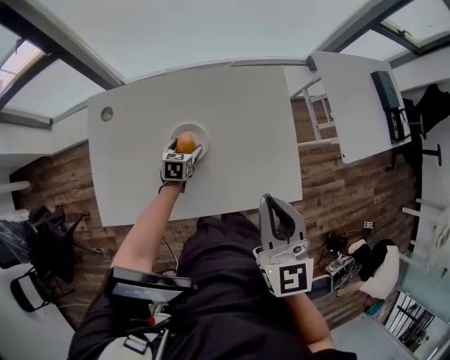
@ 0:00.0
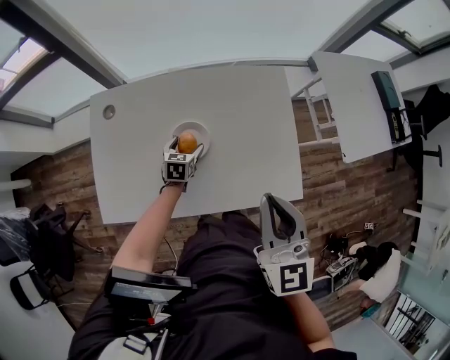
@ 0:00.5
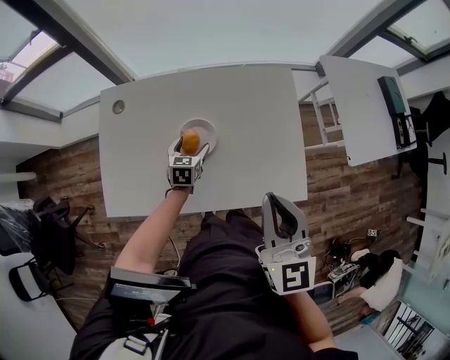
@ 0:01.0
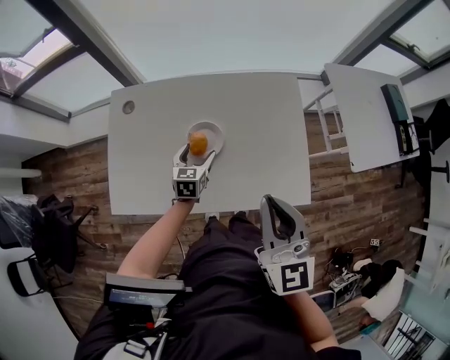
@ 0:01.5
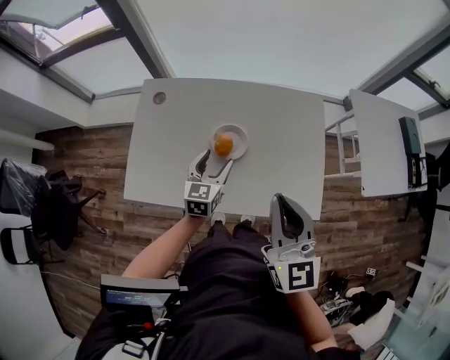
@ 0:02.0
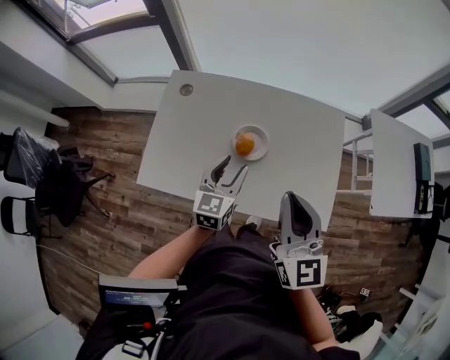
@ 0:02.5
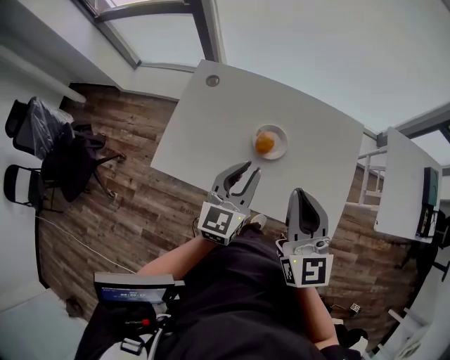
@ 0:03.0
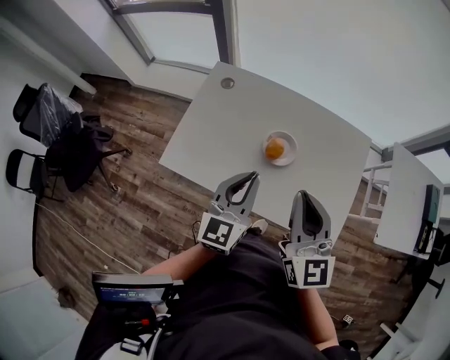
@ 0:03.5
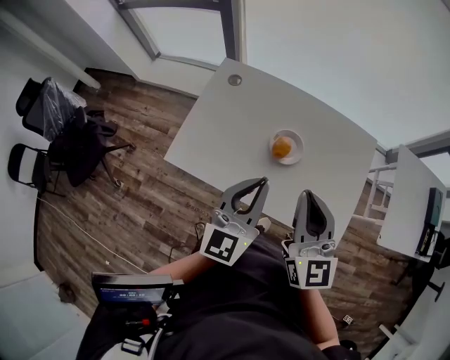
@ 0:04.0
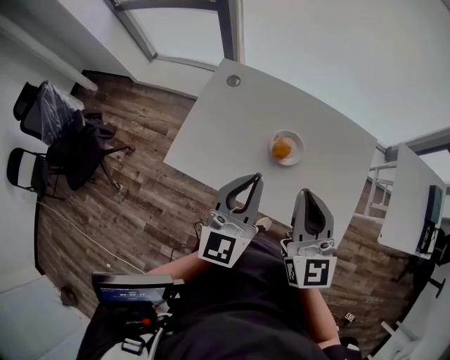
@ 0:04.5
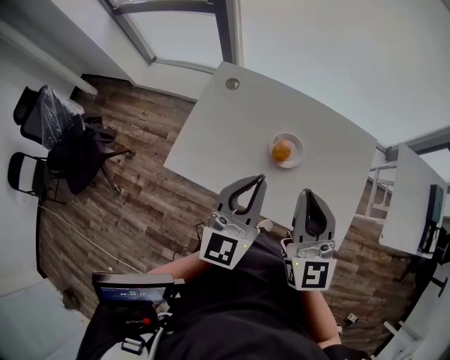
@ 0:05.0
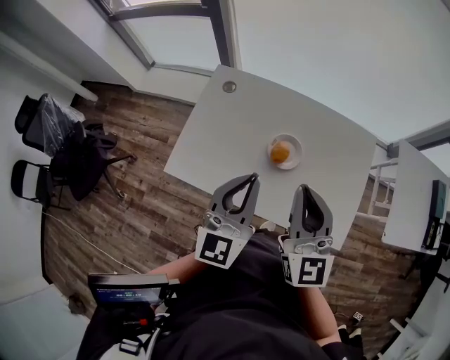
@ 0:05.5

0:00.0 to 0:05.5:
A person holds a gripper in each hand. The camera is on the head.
0:00.0 to 0:02.0: The right gripper changes place by approximately 5 cm. Meanwhile the left gripper travels upward and backward by some 20 cm, and changes its angle by about 30 degrees.
0:02.0 to 0:03.5: The left gripper heads upward, backward and to the left, covering roughly 20 cm, turns by about 20 degrees, and closes; the right gripper moves to the left, some 10 cm.
0:03.5 to 0:05.5: The left gripper ends up roughly 5 cm from where it was.

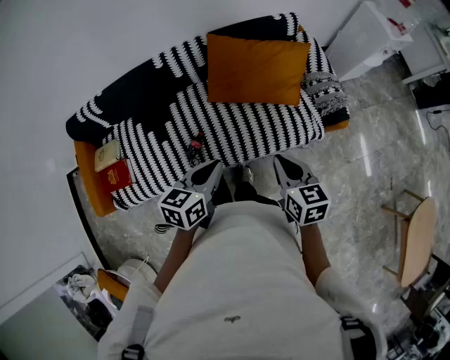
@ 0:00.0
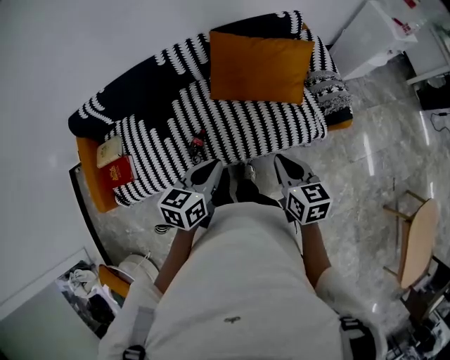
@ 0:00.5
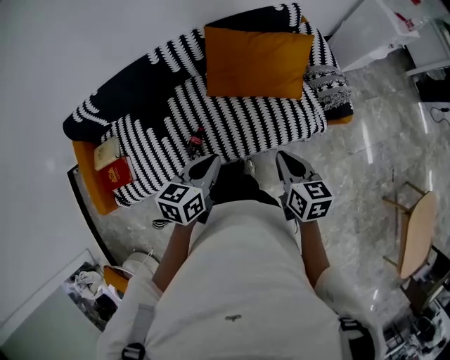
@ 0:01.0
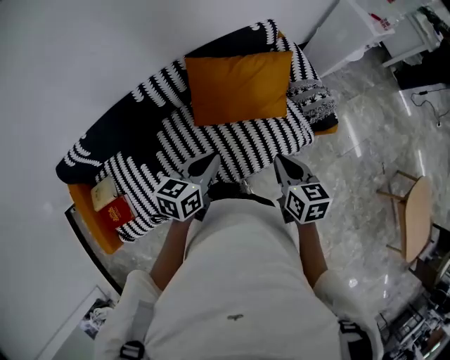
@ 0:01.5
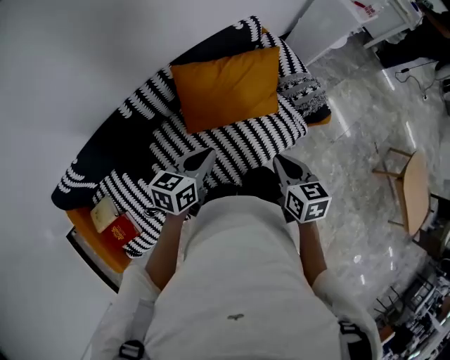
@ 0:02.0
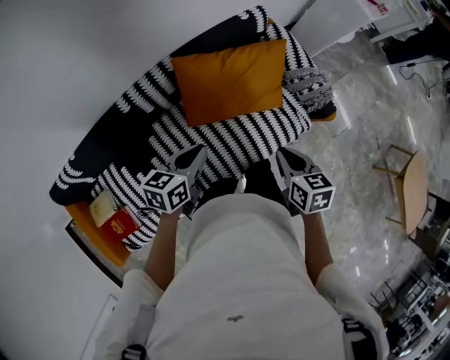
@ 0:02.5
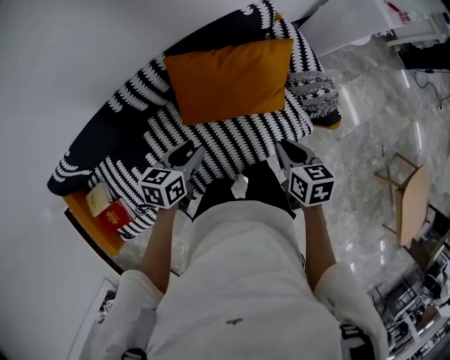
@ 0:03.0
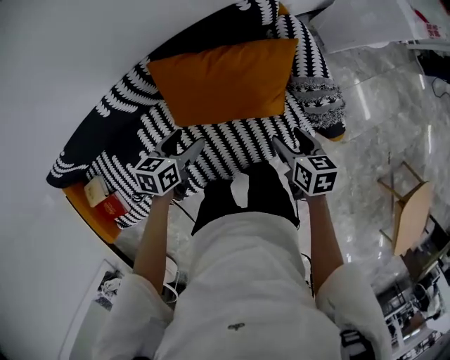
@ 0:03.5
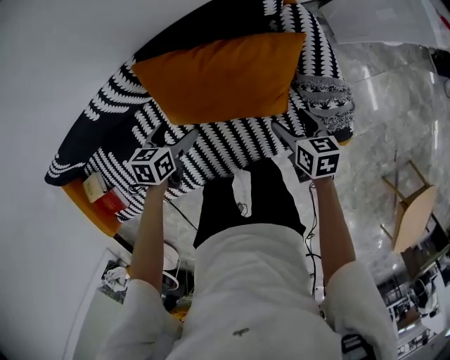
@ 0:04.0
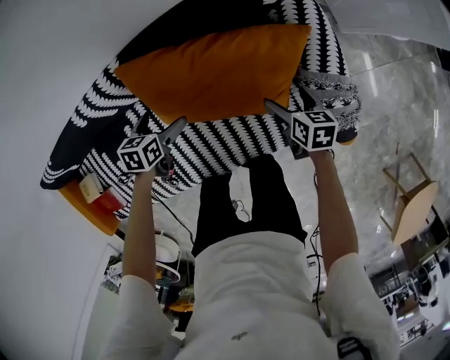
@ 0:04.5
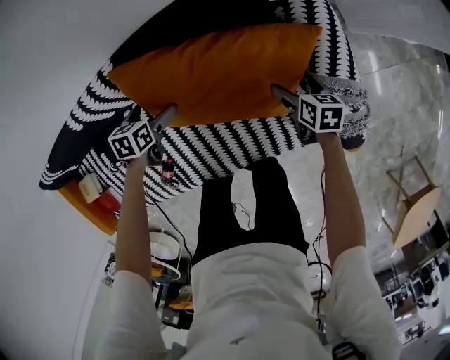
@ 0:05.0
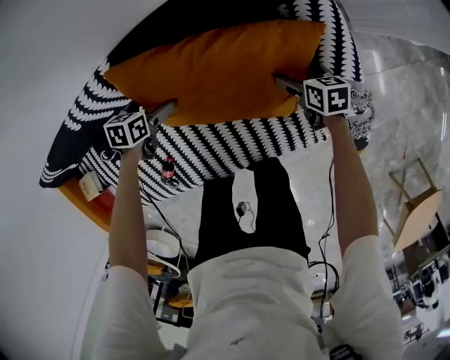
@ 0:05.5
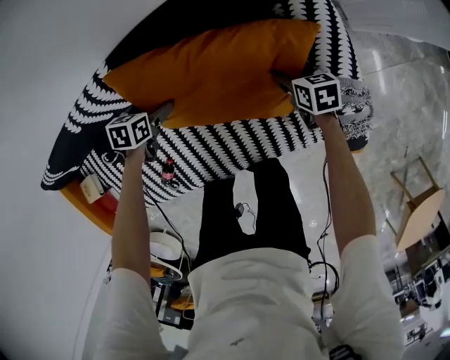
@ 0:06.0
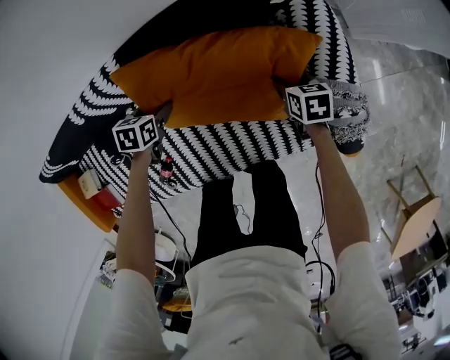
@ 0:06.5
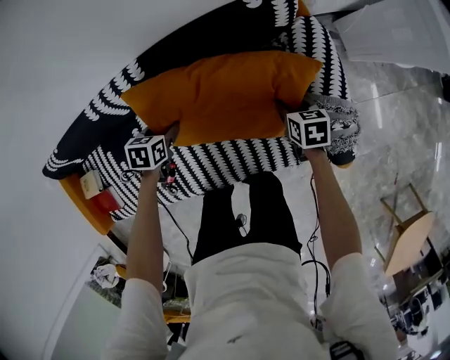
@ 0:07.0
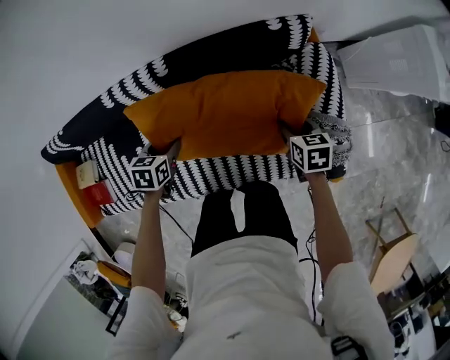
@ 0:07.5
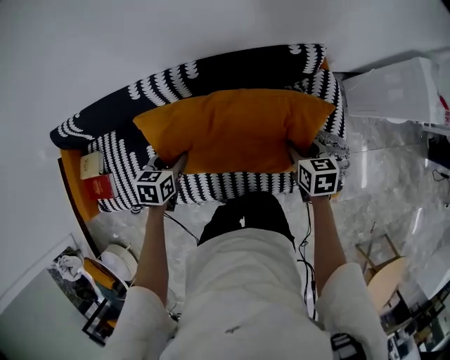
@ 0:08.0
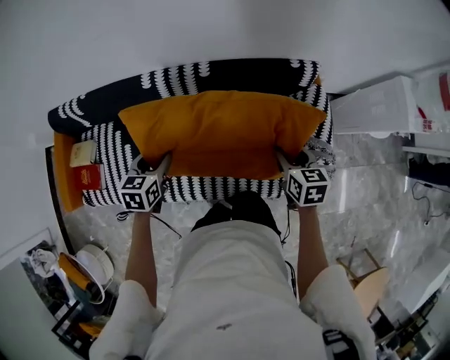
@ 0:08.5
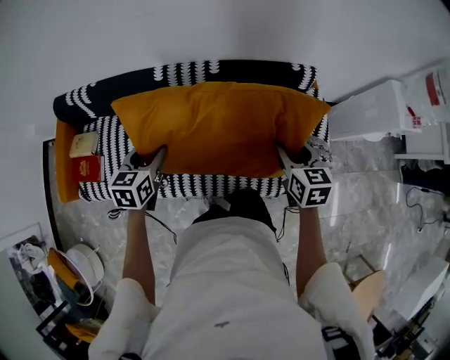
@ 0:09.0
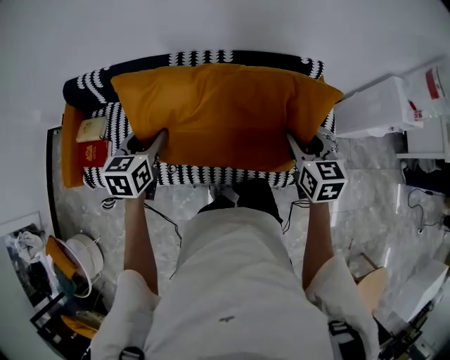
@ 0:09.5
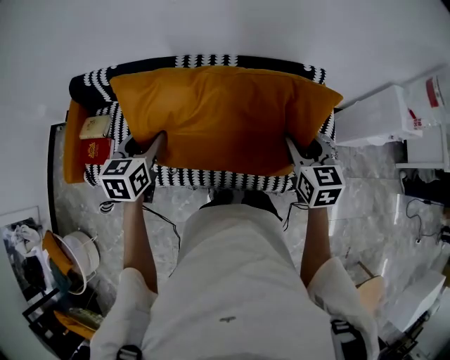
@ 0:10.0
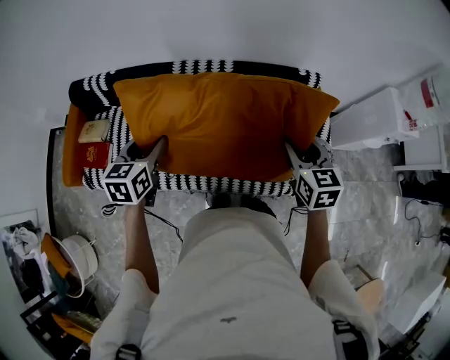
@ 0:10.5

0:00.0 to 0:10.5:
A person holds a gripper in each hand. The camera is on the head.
0:00.0 to 0:02.0: The right gripper shifts roughly 15 cm forward, and turns by some 20 degrees. Meanwhile the left gripper moves forward, roughly 20 cm, and changes its angle by about 20 degrees.
0:02.0 to 0:04.0: The left gripper is displaced downward and forward by some 30 cm, rotates some 30 degrees, and opens up. Meanwhile the right gripper goes roughly 35 cm forward and downward, rotates about 20 degrees, and opens up.
0:04.0 to 0:06.5: Both grippers travel together downward and forward, about 15 cm.
0:06.5 to 0:08.5: The right gripper shifts about 30 cm upward, and turns by some 20 degrees. The left gripper heads upward, backward and to the left, covering some 35 cm, and rotates roughly 30 degrees.
0:08.5 to 0:10.5: The two grippers go approximately 20 cm upward, backward and to the left.

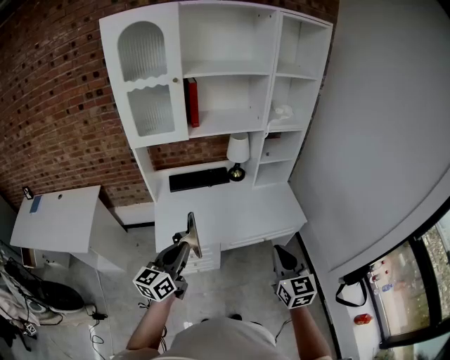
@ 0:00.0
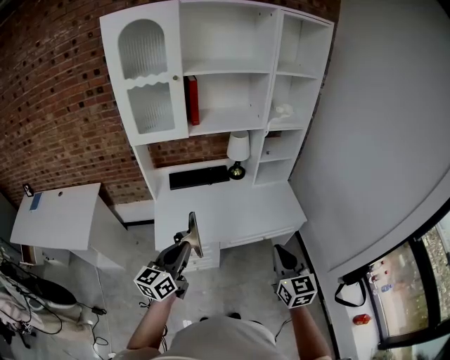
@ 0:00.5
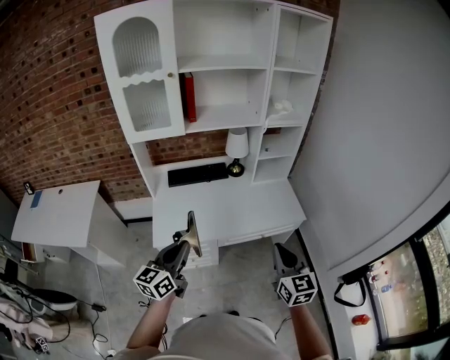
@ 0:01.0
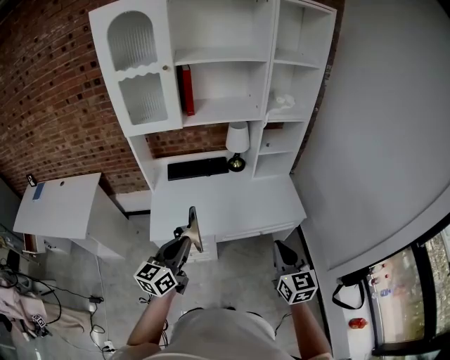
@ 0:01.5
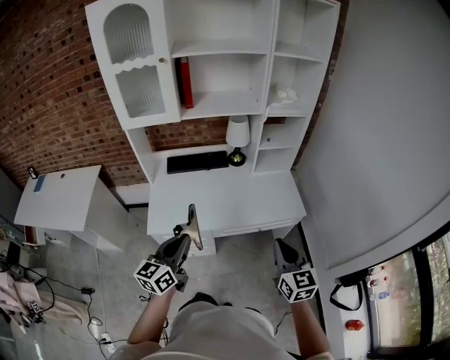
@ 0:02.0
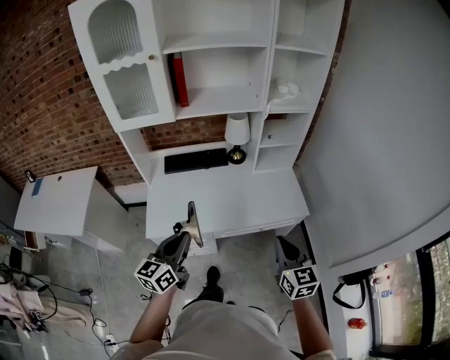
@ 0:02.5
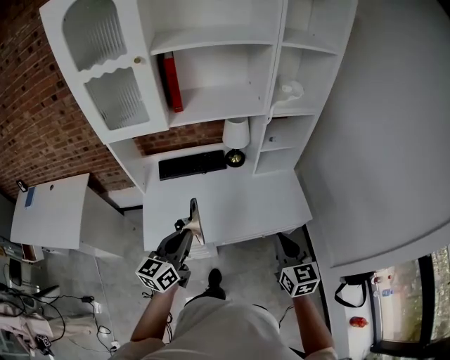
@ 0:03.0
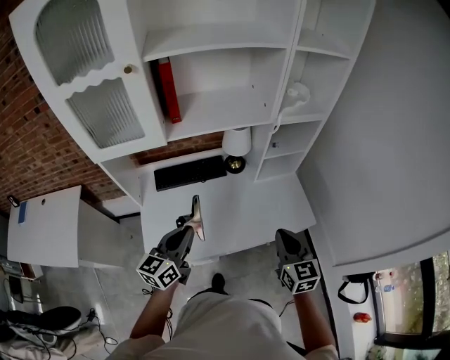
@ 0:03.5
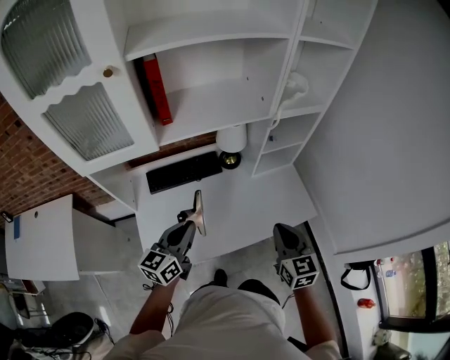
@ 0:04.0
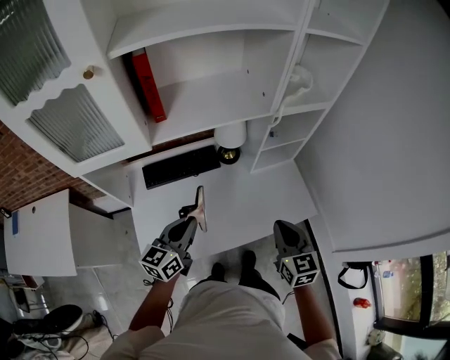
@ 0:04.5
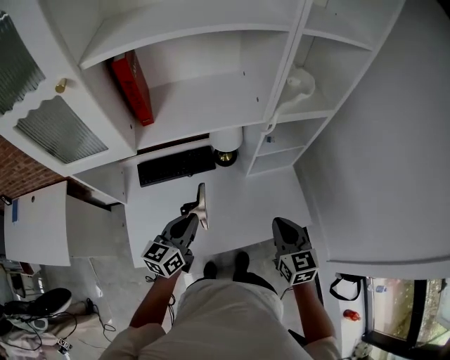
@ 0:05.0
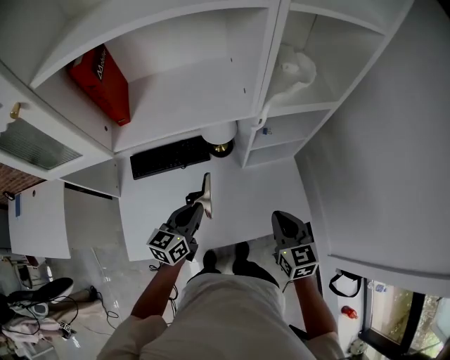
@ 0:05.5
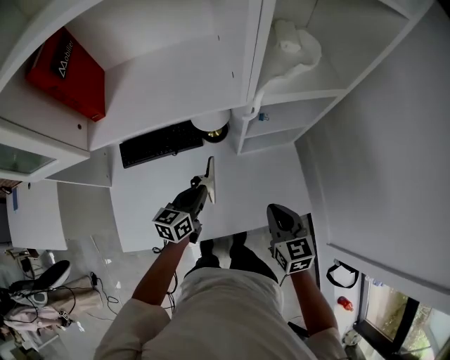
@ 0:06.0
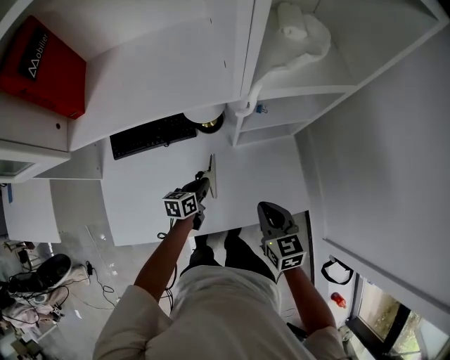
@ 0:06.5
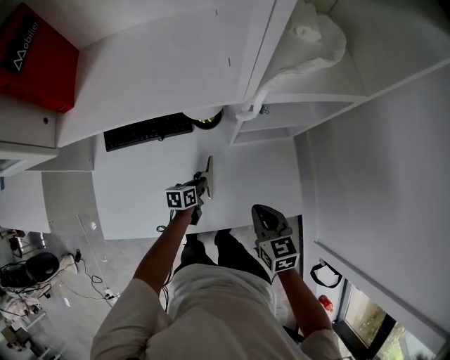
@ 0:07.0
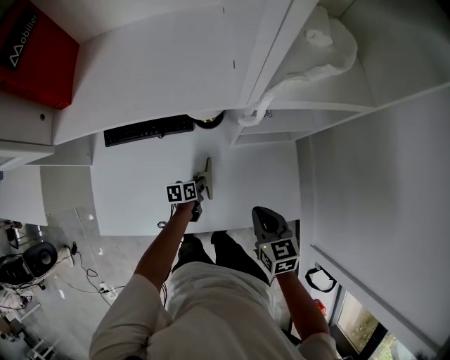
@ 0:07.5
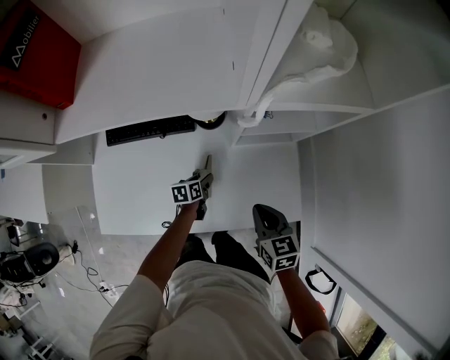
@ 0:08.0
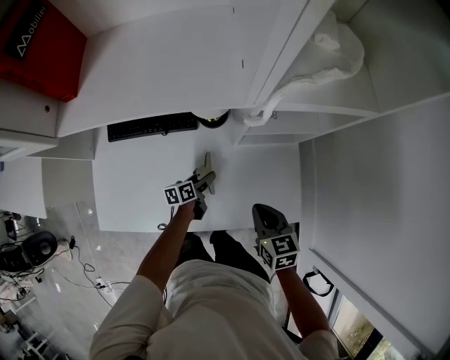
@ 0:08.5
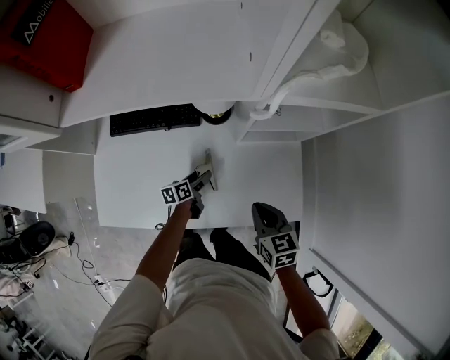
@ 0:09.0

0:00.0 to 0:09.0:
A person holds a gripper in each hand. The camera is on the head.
0:00.0 to 0:02.0: Both grippers travel together to the right, roughly 10 cm.
0:02.0 to 0:04.5: Both grippers travel together forward, about 30 cm.
0:04.5 to 0:07.0: The right gripper goes roughly 25 cm downward, forward and to the right, and swivels approximately 30 degrees. Meanwhile the left gripper moves downward, forward and to the right, approximately 50 cm, and tips its fingers downward by some 30 degrees.
0:07.0 to 0:09.0: The left gripper turns by approximately 20 degrees, and opens up.

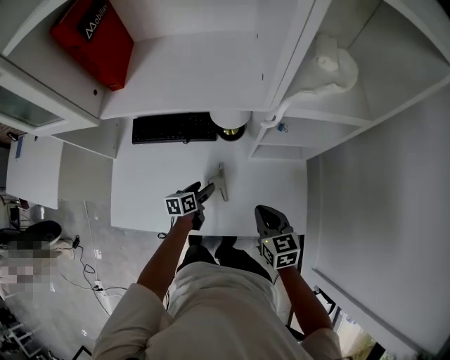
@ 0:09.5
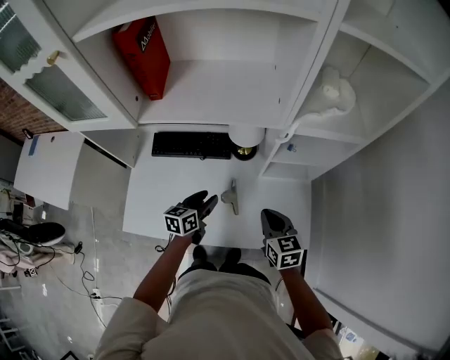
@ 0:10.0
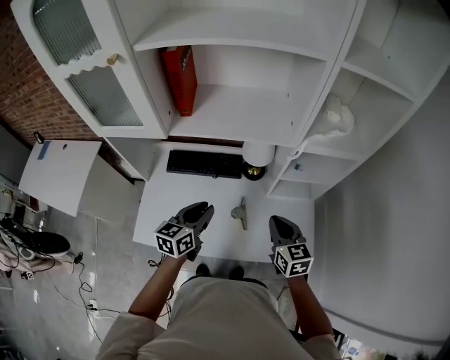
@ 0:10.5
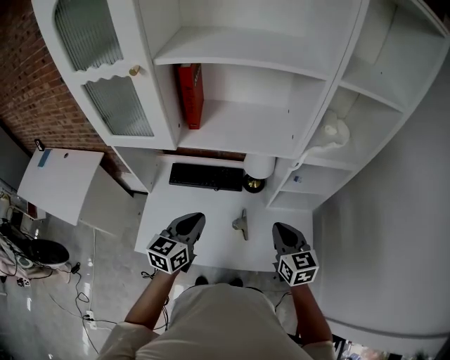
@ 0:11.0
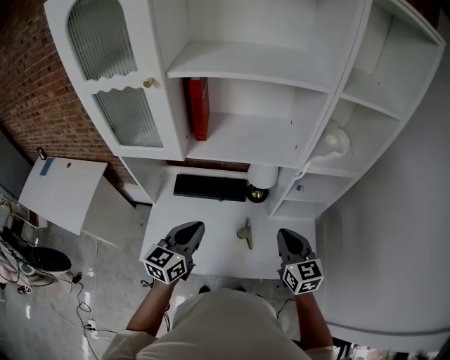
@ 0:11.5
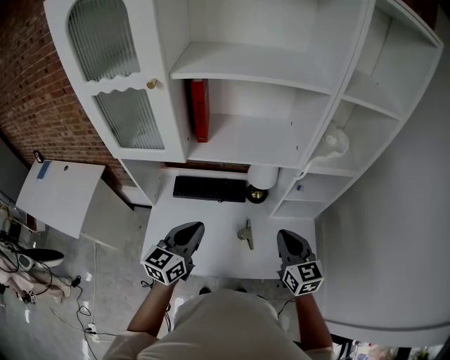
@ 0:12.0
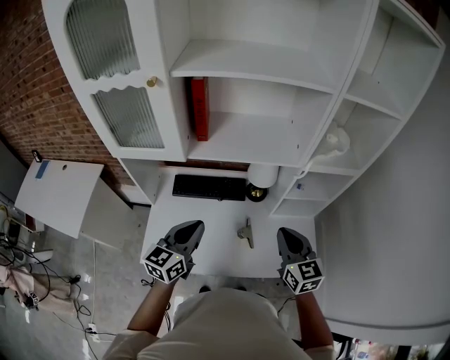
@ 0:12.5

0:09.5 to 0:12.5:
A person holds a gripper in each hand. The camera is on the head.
0:09.5 to 0:11.0: The right gripper moves upward, approximately 20 cm. The left gripper travels upward by approximately 35 cm, turns by roughly 40 degrees, and closes its fingers.
0:11.0 to 0:12.5: The left gripper ends up approximately 5 cm from where it was; the right gripper ends up approximately 5 cm from where it was.
